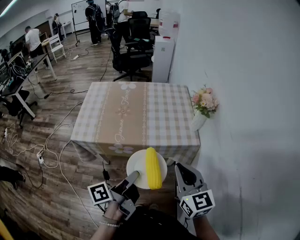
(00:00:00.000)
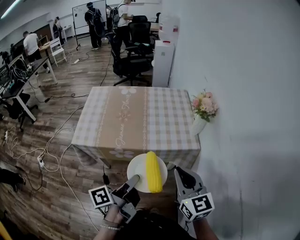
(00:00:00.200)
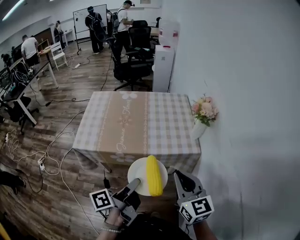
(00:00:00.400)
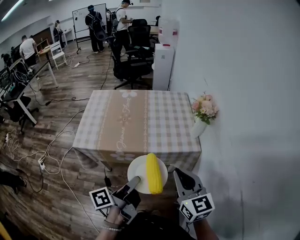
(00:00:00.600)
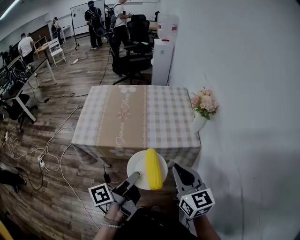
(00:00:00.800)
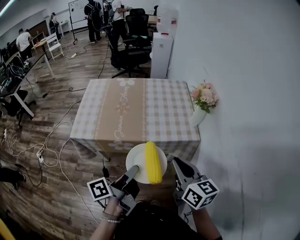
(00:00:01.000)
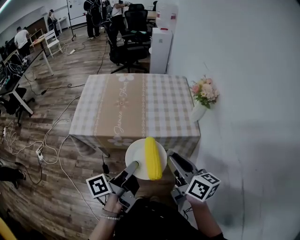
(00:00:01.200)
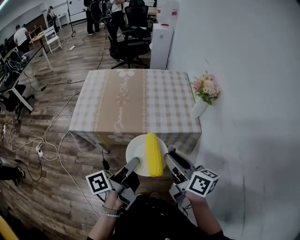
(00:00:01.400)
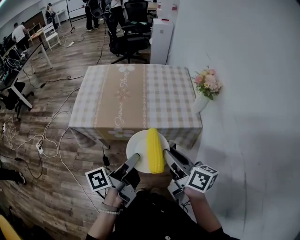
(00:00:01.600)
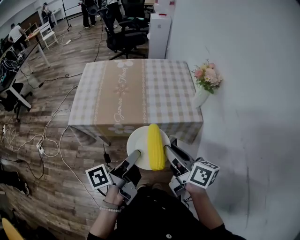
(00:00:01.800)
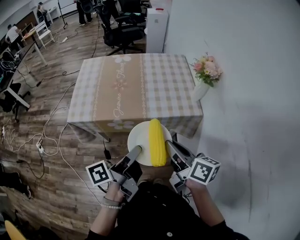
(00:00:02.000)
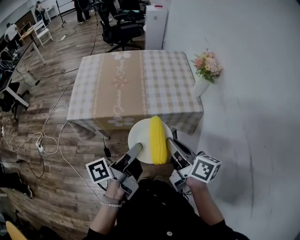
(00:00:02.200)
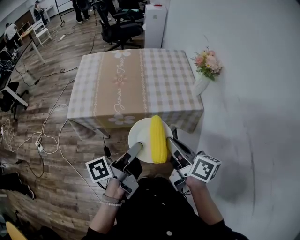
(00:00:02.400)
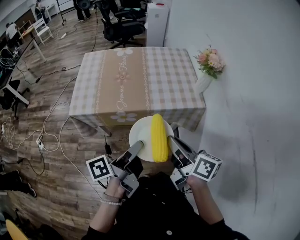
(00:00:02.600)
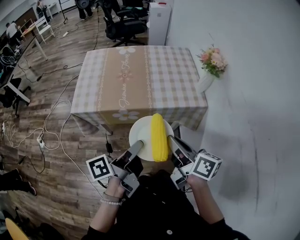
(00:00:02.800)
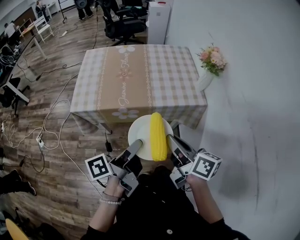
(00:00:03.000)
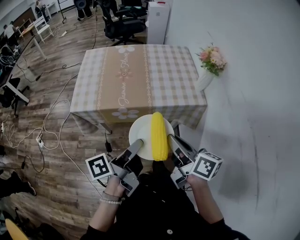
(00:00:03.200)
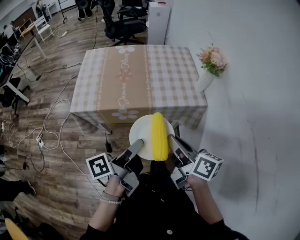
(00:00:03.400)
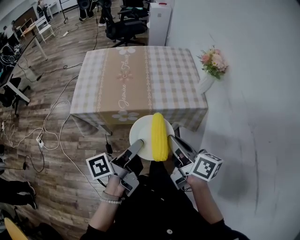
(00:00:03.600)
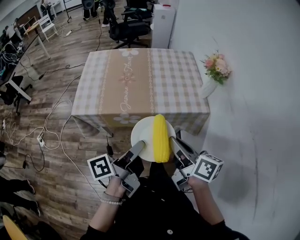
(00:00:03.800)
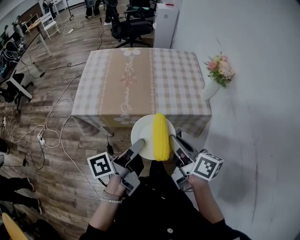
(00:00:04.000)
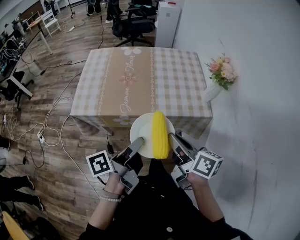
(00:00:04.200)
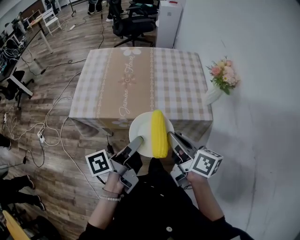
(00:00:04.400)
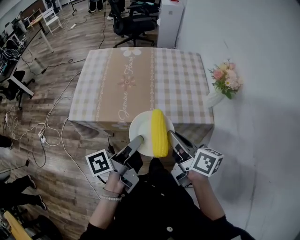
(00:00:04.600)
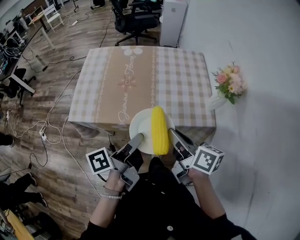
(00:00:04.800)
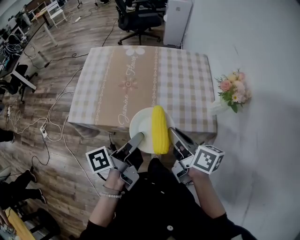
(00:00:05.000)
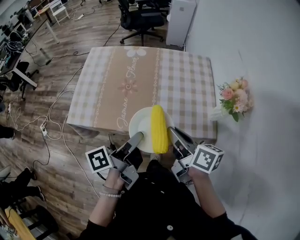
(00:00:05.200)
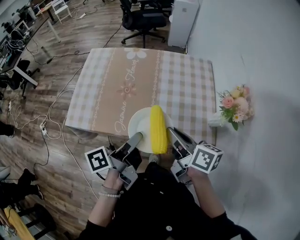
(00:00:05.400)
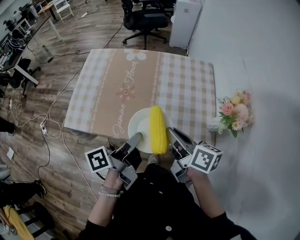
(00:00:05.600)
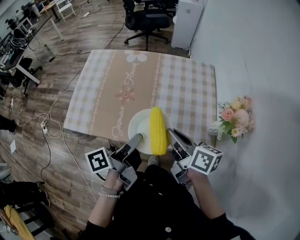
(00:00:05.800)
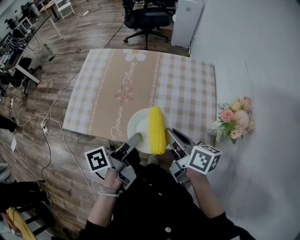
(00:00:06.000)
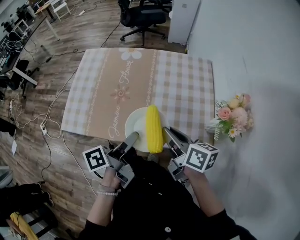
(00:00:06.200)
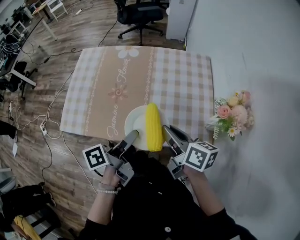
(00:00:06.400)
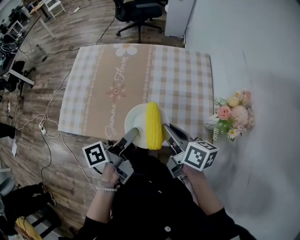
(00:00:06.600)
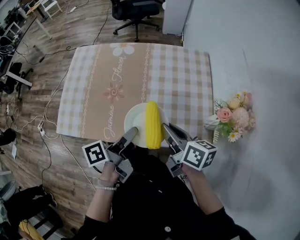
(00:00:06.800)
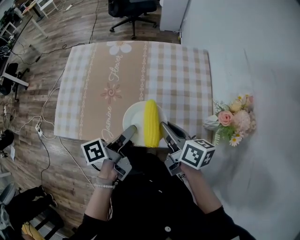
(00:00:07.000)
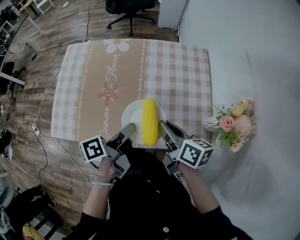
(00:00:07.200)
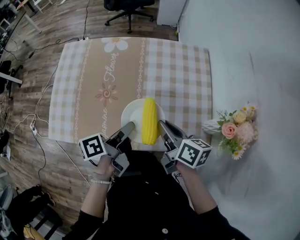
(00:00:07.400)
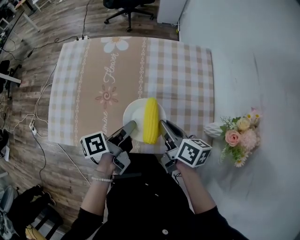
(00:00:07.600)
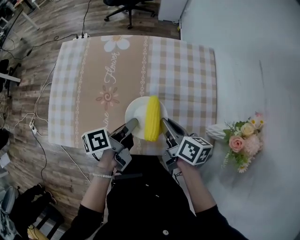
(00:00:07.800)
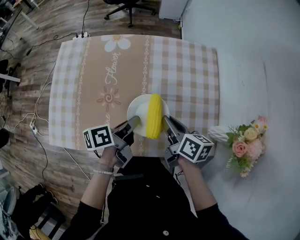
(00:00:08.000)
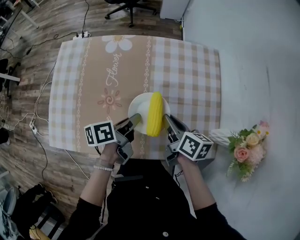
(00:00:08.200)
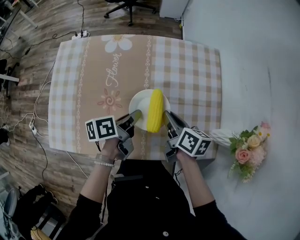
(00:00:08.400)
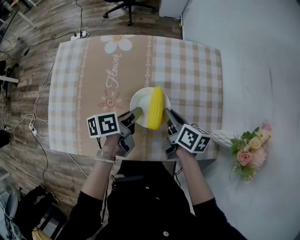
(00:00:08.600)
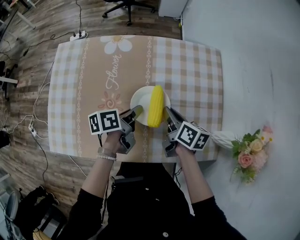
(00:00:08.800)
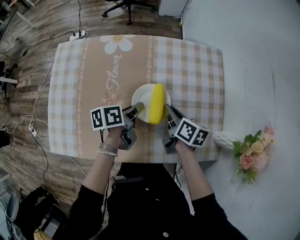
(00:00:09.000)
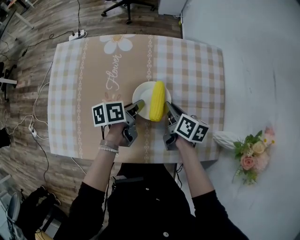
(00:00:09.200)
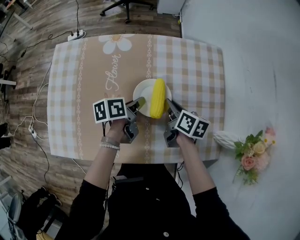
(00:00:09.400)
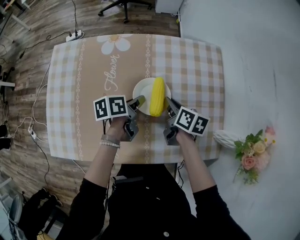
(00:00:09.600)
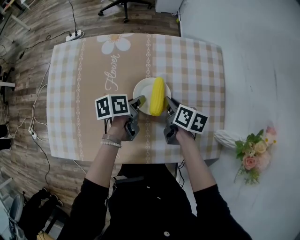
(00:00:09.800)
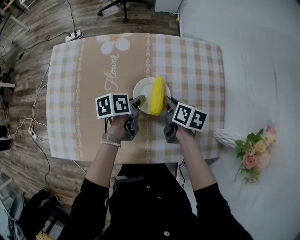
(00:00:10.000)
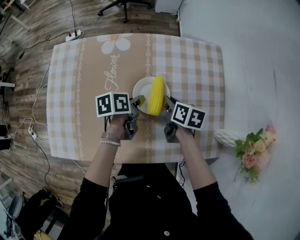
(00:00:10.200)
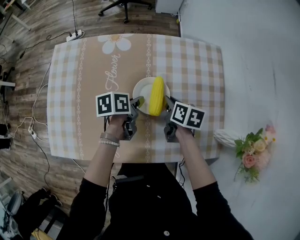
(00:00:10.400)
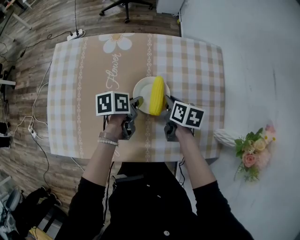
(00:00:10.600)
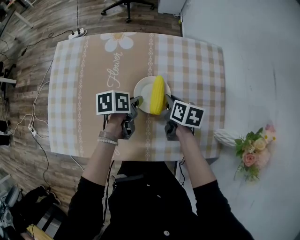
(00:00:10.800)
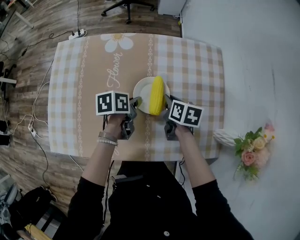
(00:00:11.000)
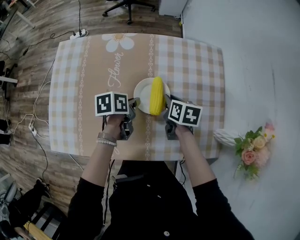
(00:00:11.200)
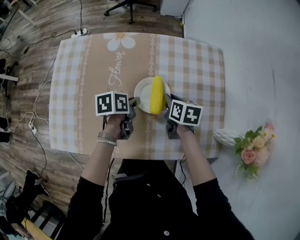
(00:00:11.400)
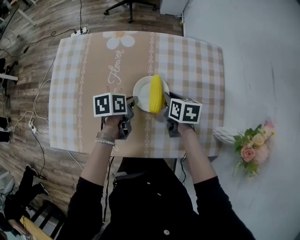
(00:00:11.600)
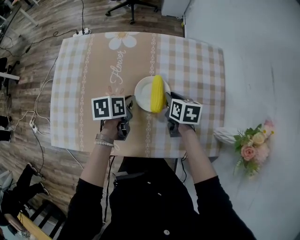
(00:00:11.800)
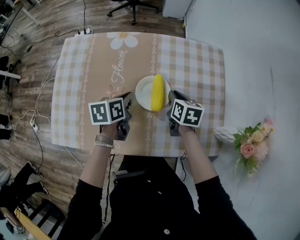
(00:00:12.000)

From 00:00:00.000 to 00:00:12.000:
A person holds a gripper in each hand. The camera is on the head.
From 00:00:00.000 to 00:00:01.600: The right gripper ends up approximately 5 cm from where it was, rolls clockwise, seen from behind, by roughly 50 degrees, and opens up.
From 00:00:01.600 to 00:00:03.000: The right gripper ends up approximately 5 cm from where it was.
From 00:00:03.000 to 00:00:04.400: Both grippers move forward, roughly 10 cm.
From 00:00:04.400 to 00:00:06.000: The two grippers go some 10 cm forward.
From 00:00:06.000 to 00:00:07.600: The grippers both shift forward and downward by approximately 15 cm.
From 00:00:07.600 to 00:00:09.000: The grippers both shift forward and downward by some 15 cm.
From 00:00:09.000 to 00:00:10.400: The grippers stay close to where they were, moving slightly.
From 00:00:10.400 to 00:00:12.000: The left gripper moves approximately 5 cm.

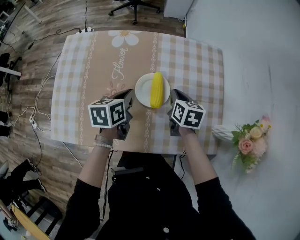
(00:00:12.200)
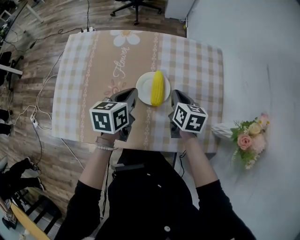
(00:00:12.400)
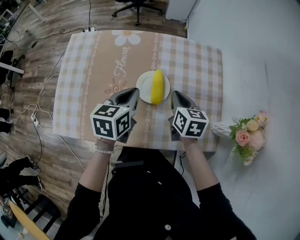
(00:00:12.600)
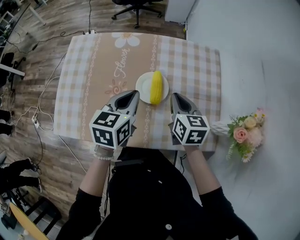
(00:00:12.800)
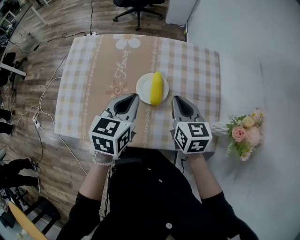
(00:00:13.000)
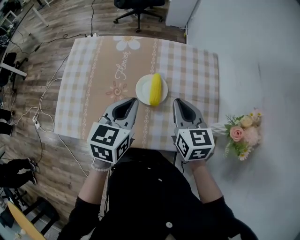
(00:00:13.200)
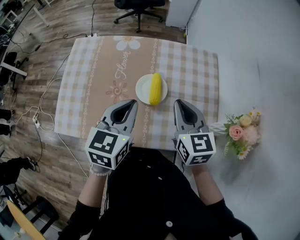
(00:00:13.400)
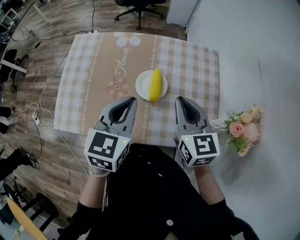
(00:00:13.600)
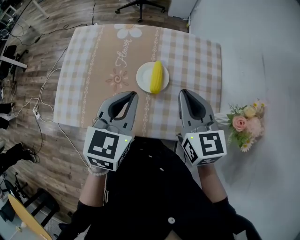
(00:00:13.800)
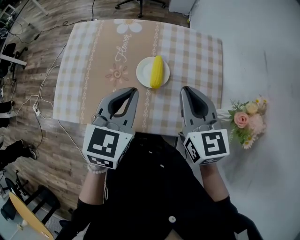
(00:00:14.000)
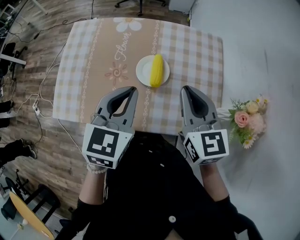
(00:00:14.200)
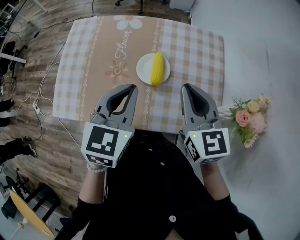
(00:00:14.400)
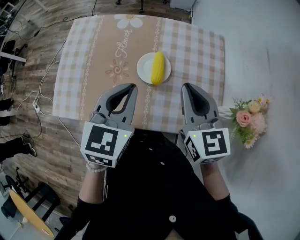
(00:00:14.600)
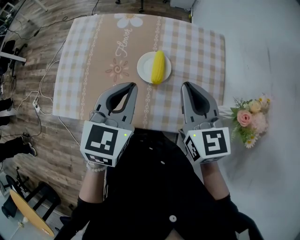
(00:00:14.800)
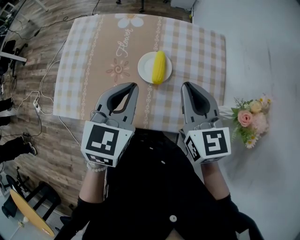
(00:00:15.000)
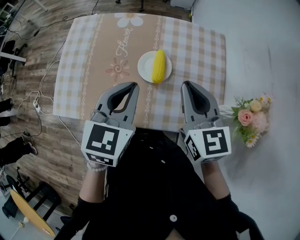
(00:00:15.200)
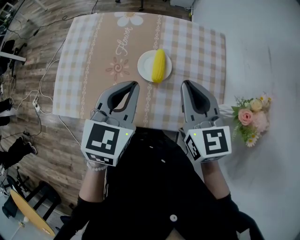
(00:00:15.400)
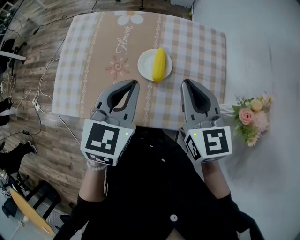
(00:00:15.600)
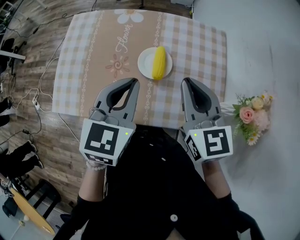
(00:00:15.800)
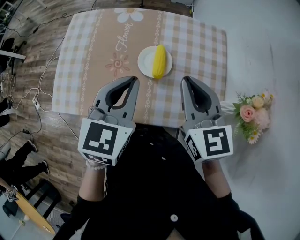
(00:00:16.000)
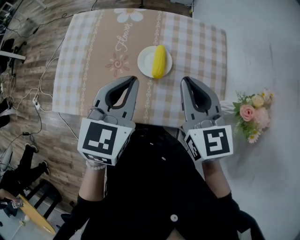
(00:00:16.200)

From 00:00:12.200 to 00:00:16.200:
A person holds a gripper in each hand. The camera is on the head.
From 00:00:12.200 to 00:00:13.600: Both grippers move upward and backward, roughly 20 cm. The right gripper changes its angle by approximately 30 degrees; the left gripper turns by roughly 30 degrees.
From 00:00:13.600 to 00:00:16.200: The grippers make only small movements.

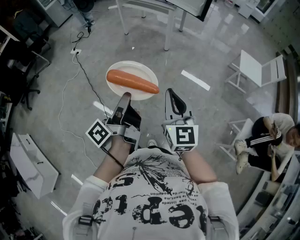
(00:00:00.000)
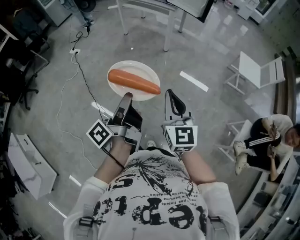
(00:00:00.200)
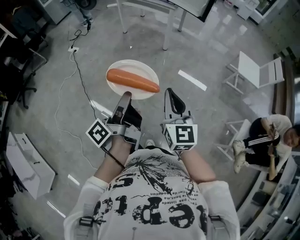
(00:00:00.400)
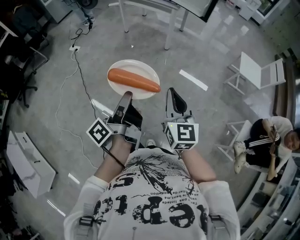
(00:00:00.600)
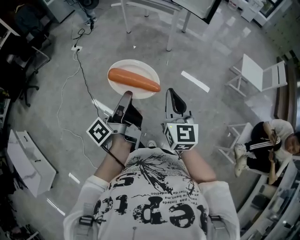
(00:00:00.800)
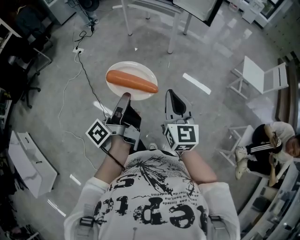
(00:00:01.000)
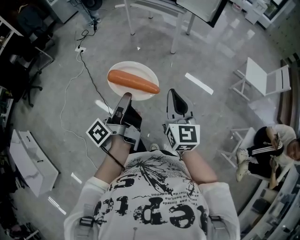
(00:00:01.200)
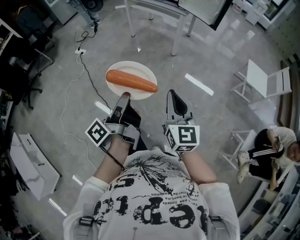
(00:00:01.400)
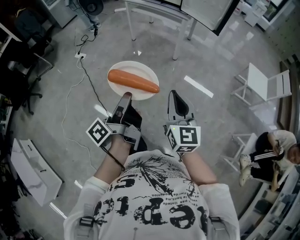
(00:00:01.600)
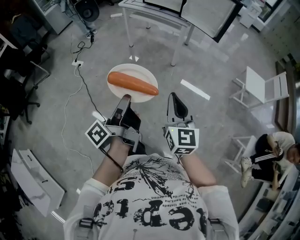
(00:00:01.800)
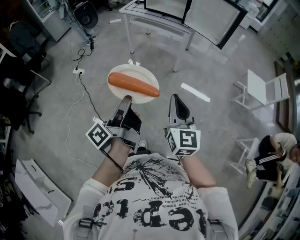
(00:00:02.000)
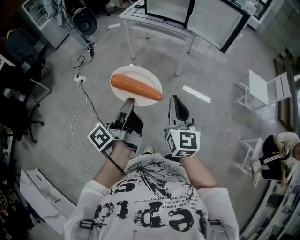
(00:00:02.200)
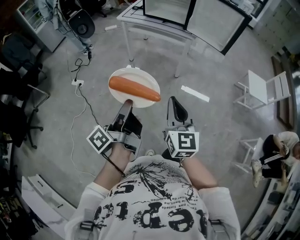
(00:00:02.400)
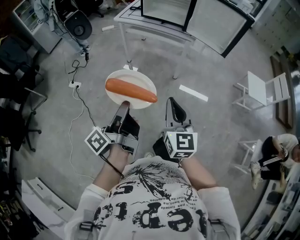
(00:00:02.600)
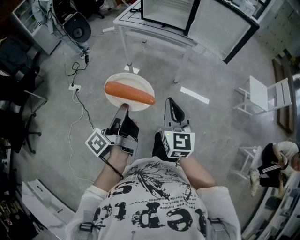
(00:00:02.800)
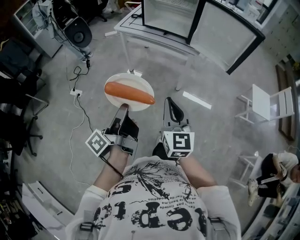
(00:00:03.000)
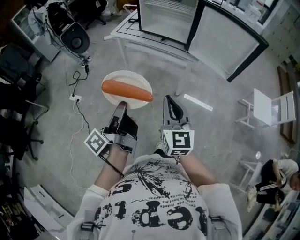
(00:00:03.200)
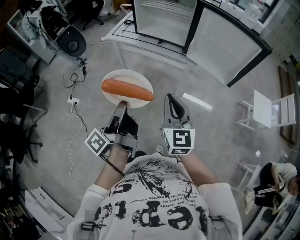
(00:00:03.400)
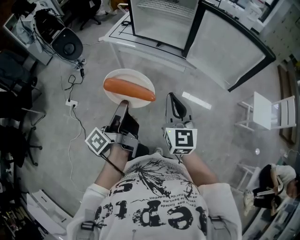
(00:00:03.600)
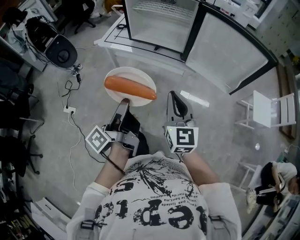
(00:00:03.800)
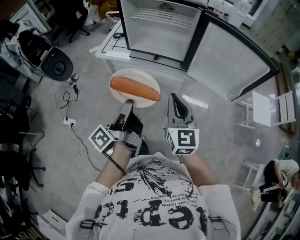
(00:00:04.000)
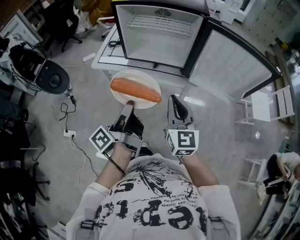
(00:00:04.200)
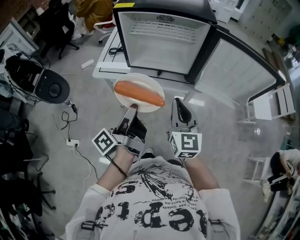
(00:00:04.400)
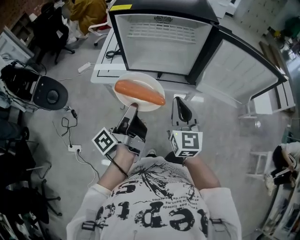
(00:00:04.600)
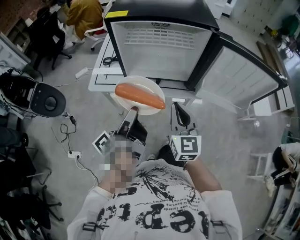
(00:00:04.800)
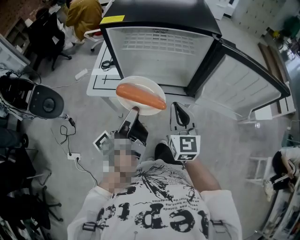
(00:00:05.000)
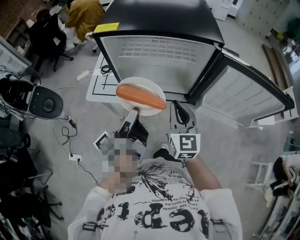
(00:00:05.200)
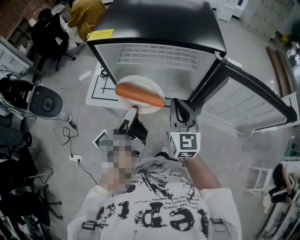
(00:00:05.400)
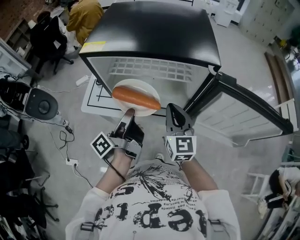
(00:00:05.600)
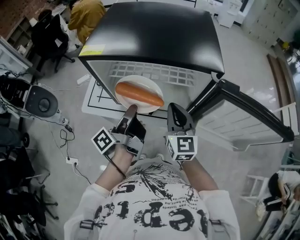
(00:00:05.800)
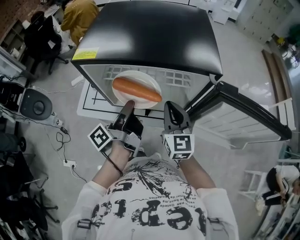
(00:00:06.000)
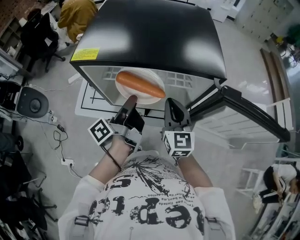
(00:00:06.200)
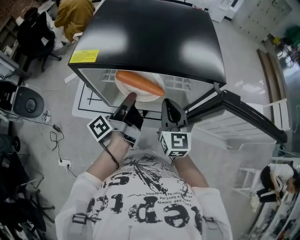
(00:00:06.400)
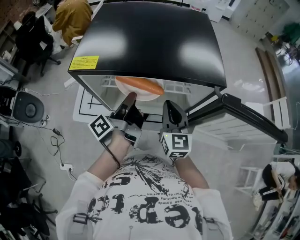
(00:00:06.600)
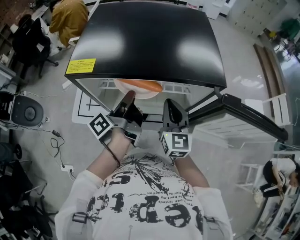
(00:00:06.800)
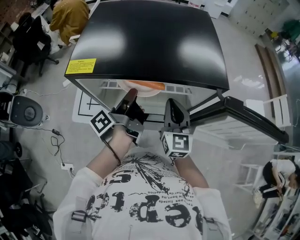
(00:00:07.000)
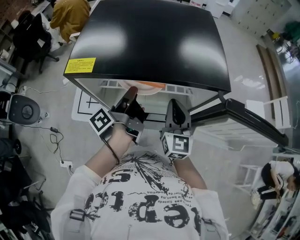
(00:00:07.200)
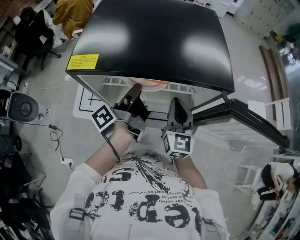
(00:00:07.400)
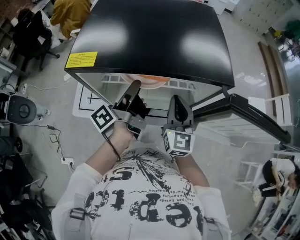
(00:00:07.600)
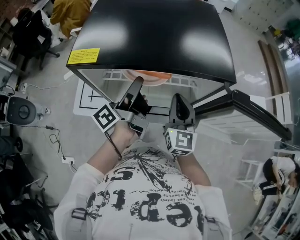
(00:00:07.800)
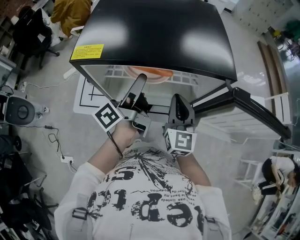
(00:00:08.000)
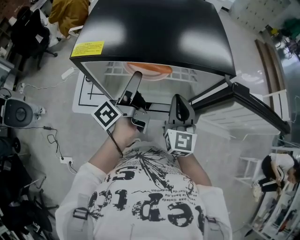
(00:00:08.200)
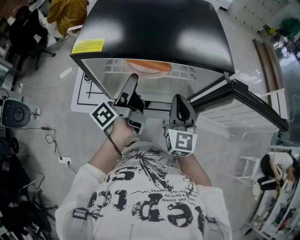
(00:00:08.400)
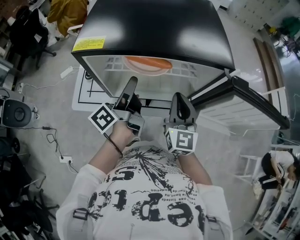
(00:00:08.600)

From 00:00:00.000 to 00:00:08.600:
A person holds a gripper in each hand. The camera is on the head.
From 00:00:00.000 to 00:00:01.400: The right gripper changes place by approximately 5 cm.
From 00:00:01.400 to 00:00:02.800: The right gripper shifts by some 40 cm.
From 00:00:02.800 to 00:00:04.400: The right gripper ends up approximately 50 cm from where it was.
From 00:00:04.400 to 00:00:05.800: The right gripper changes place by about 25 cm.
From 00:00:05.800 to 00:00:07.200: The right gripper ends up roughly 5 cm from where it was.
From 00:00:07.200 to 00:00:08.600: The right gripper shifts by about 5 cm.
